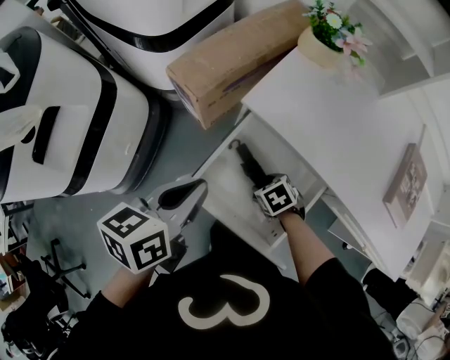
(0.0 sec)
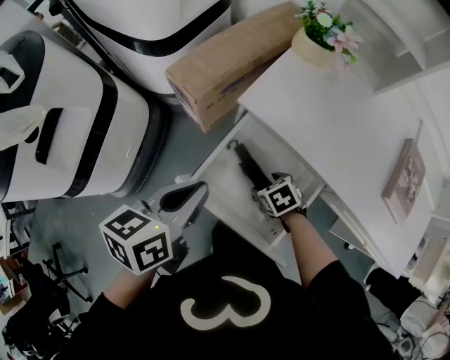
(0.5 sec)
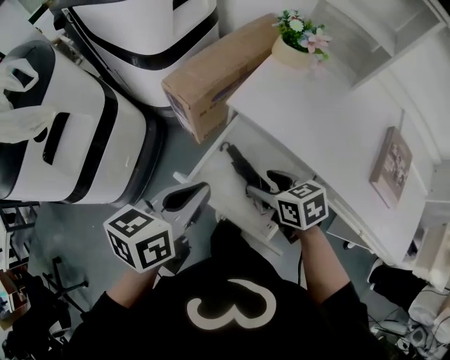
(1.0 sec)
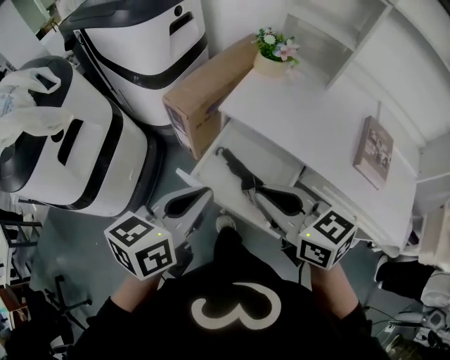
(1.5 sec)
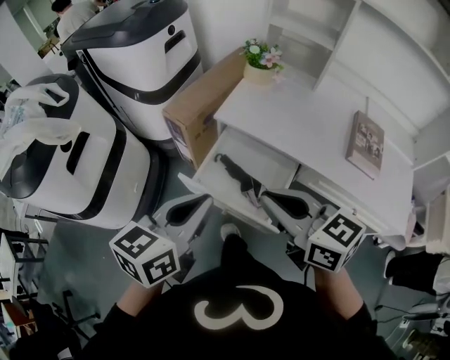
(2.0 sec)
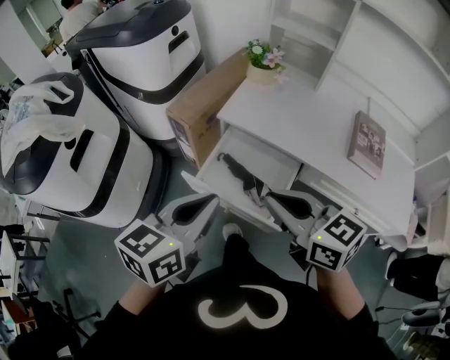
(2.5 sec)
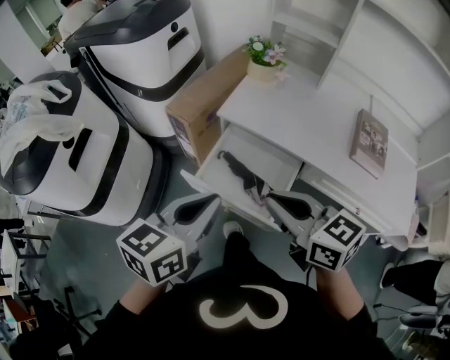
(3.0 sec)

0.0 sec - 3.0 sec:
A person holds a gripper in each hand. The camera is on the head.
0.0 sec - 1.5 sec: The right gripper moves upward, some 40 cm, angles its fingers upward, by about 50 degrees, and closes its fingers; the left gripper heads upward, covering approximately 15 cm.
1.5 sec - 3.0 sec: The right gripper shifts by about 5 cm, while the left gripper shifts by approximately 5 cm.

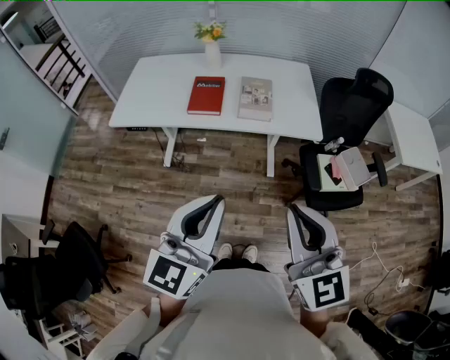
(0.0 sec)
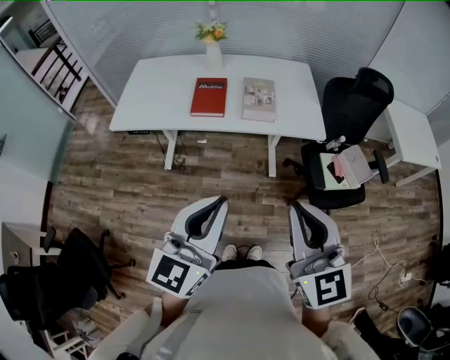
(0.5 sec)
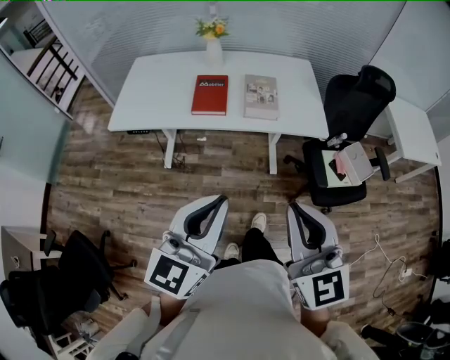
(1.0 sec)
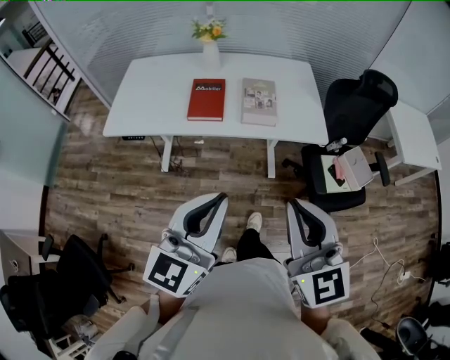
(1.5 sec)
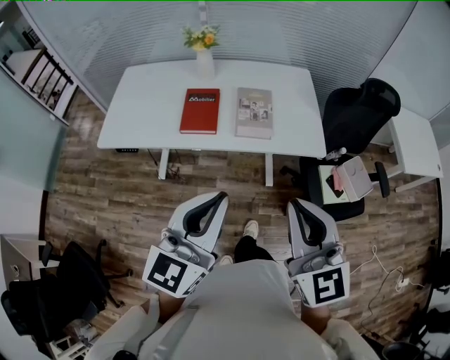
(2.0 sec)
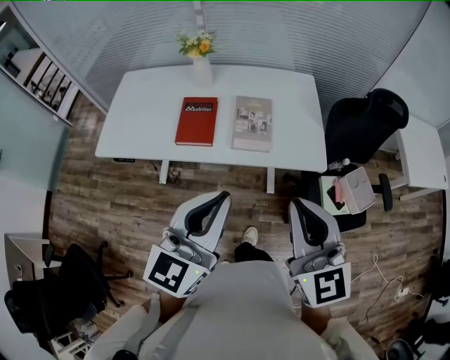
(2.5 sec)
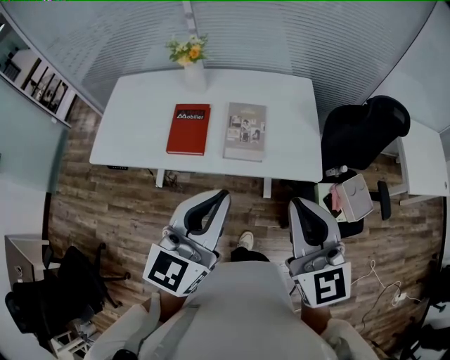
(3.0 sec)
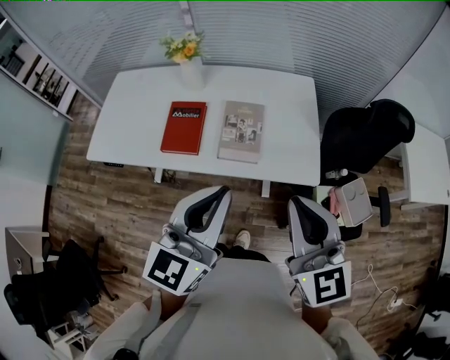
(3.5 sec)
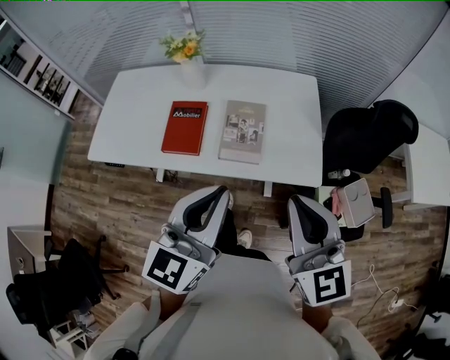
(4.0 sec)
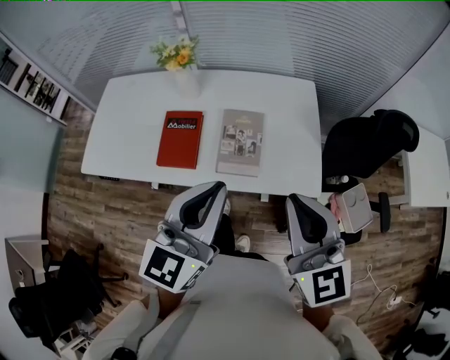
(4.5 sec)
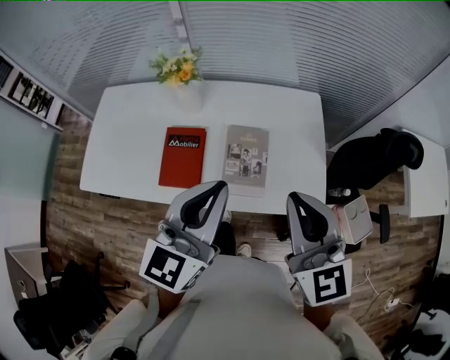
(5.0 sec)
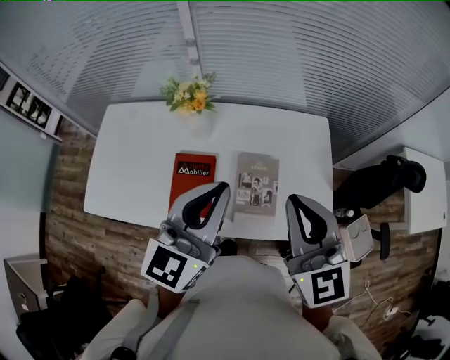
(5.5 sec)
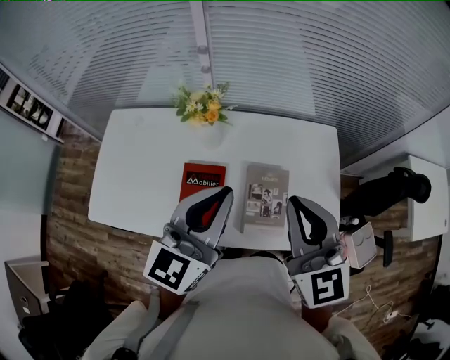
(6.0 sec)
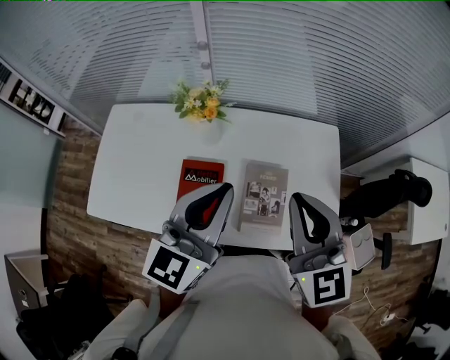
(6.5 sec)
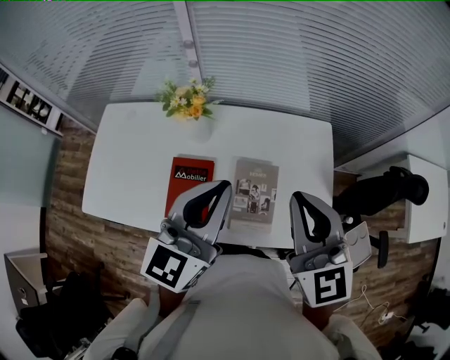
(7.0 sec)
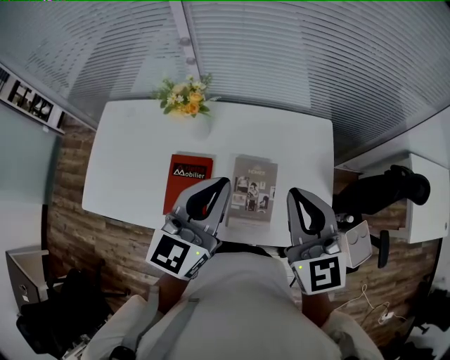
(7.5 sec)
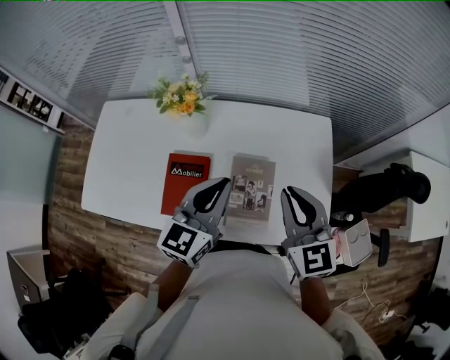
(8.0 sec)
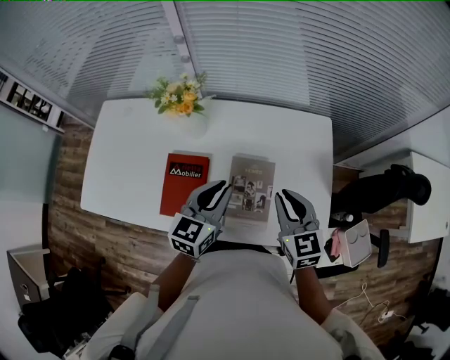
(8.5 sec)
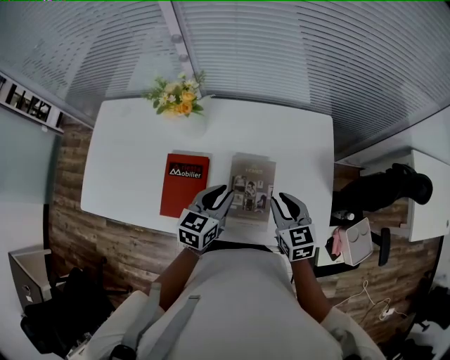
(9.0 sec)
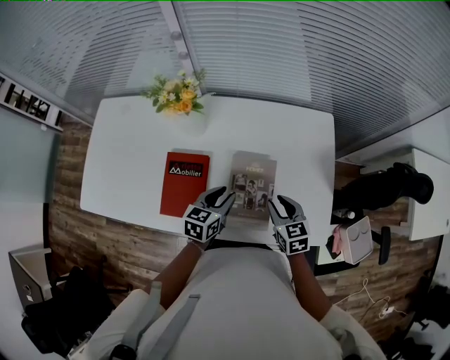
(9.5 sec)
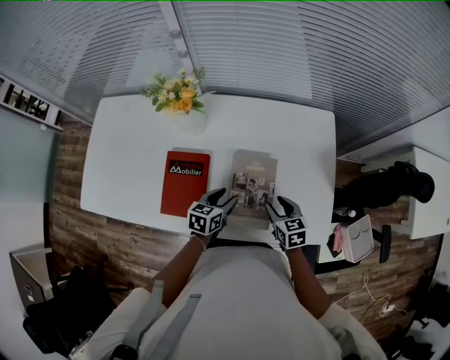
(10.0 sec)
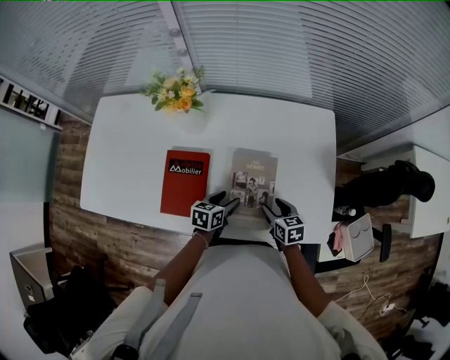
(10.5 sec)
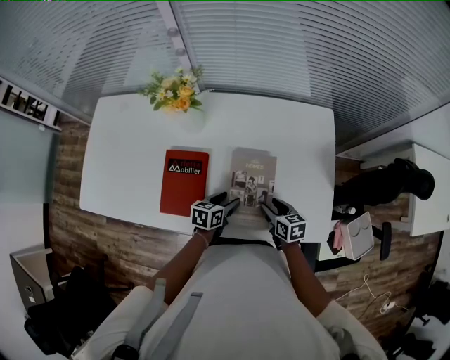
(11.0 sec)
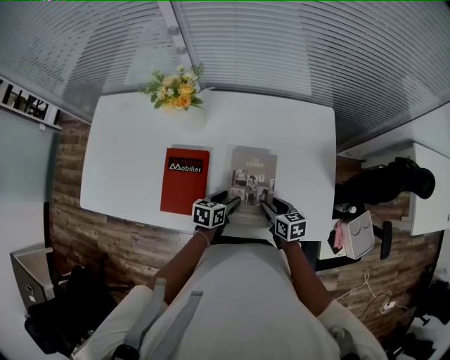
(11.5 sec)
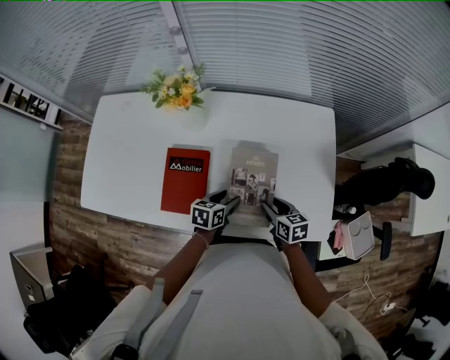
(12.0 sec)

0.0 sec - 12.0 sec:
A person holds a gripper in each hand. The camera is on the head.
0.0 sec - 2.0 sec: The grippers both shift forward by about 15 cm.
2.0 sec - 4.0 sec: The two grippers go roughly 20 cm forward and to the right.
4.0 sec - 6.0 sec: Both grippers move forward and to the left, roughly 30 cm.
6.0 sec - 8.0 sec: The two grippers go about 15 cm downward and to the right.
8.0 sec - 10.0 sec: Both grippers move downward, some 30 cm. The left gripper swivels roughly 40 degrees, and opens up. The right gripper turns by about 30 degrees, and opens its fingers.
10.0 sec - 12.0 sec: The grippers make only small movements.

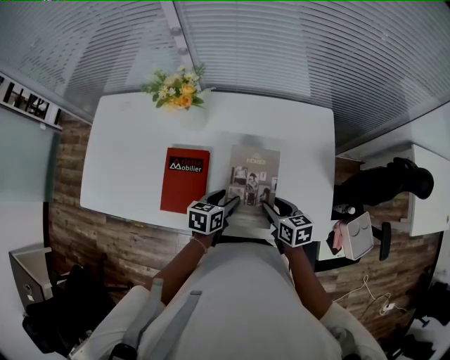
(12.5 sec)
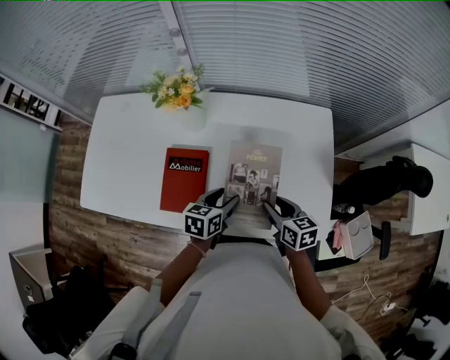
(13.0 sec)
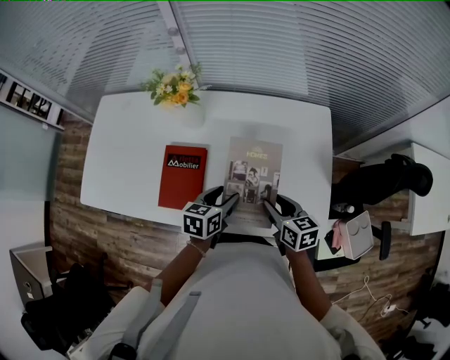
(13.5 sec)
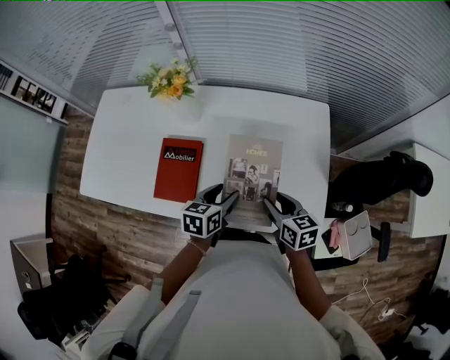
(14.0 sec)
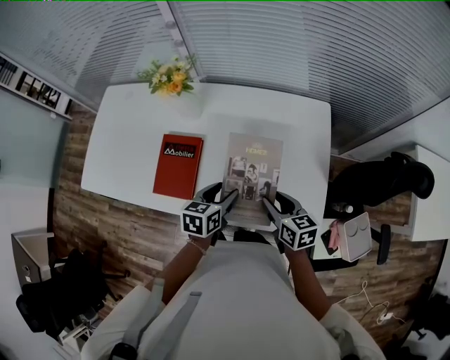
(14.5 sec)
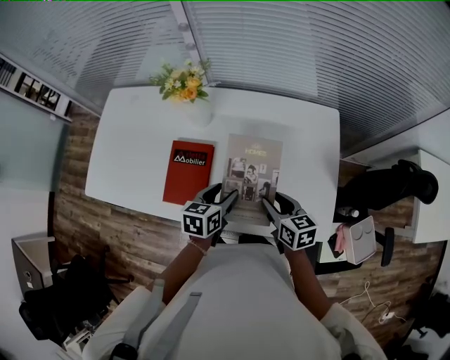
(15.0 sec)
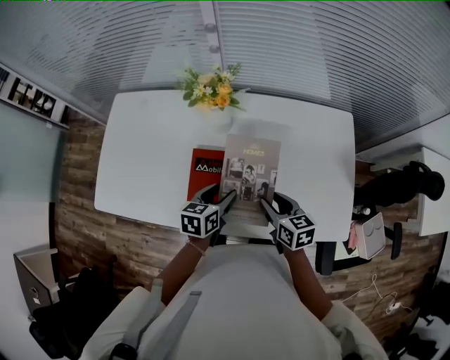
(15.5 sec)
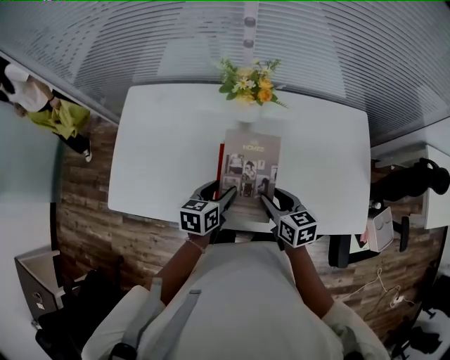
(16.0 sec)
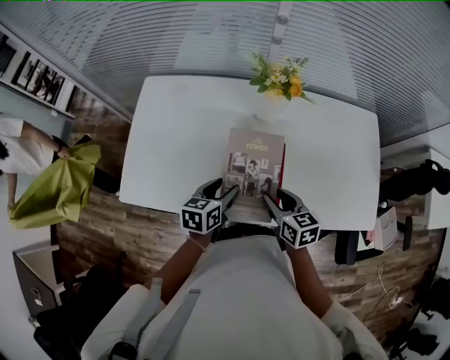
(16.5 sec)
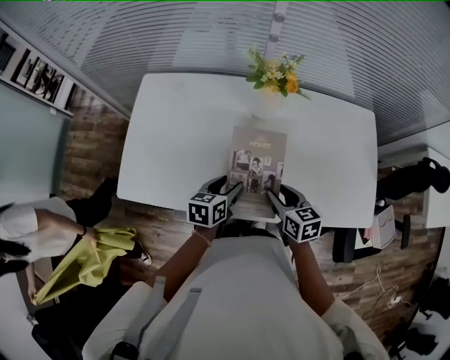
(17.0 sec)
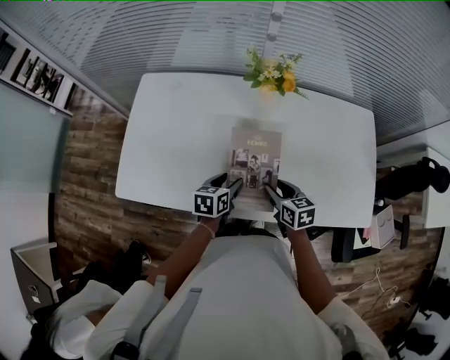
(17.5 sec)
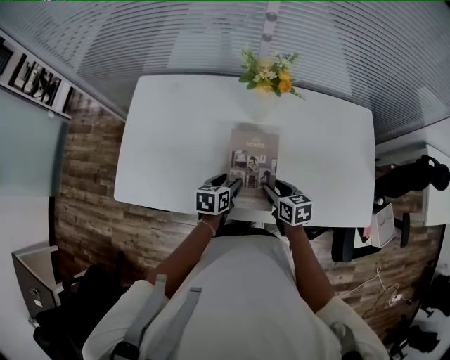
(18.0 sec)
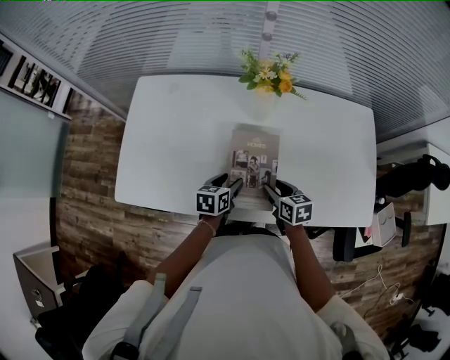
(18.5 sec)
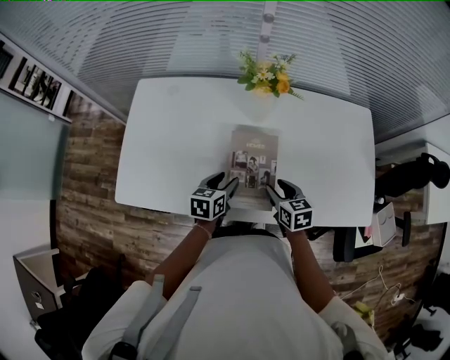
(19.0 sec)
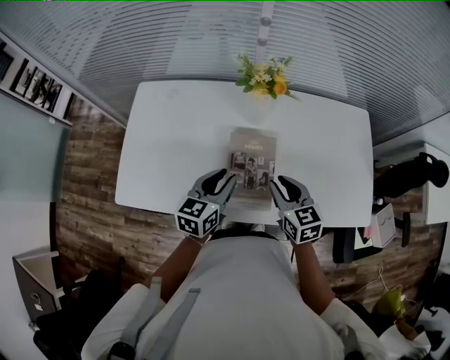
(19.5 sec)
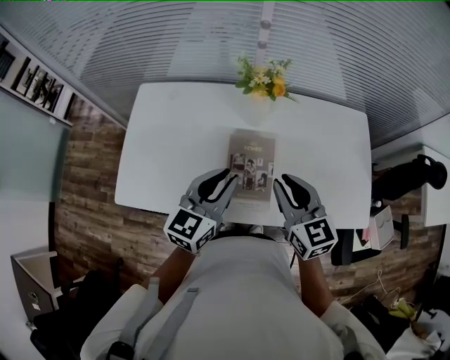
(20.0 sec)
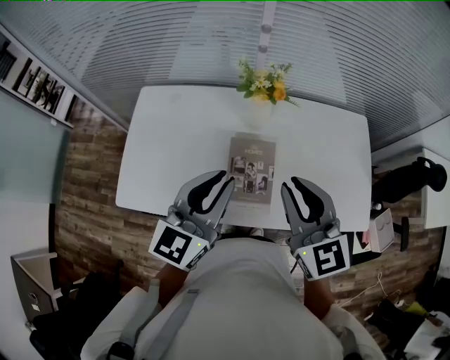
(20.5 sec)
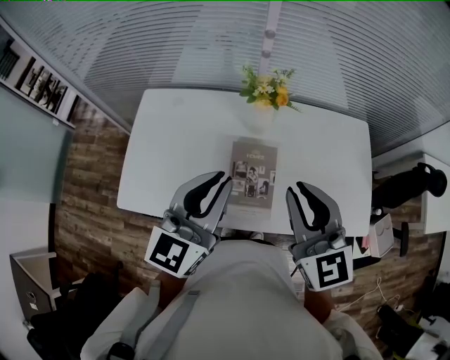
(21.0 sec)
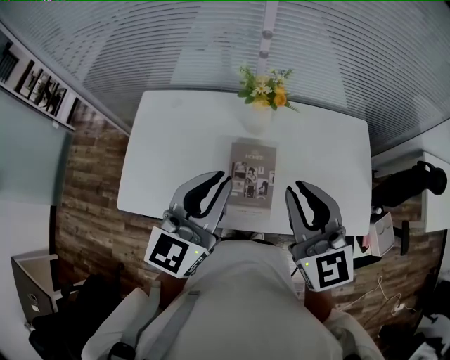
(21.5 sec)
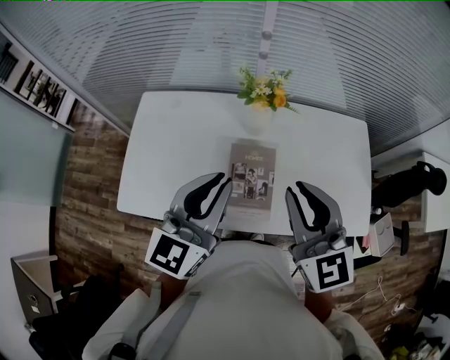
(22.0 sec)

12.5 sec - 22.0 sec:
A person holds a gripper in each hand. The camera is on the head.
12.5 sec - 14.5 sec: The two grippers go some 5 cm upward.
14.5 sec - 16.5 sec: Both grippers travel together to the left, about 35 cm.
16.5 sec - 18.0 sec: Both grippers travel together downward, about 10 cm.
18.0 sec - 20.0 sec: Both grippers travel together upward, approximately 25 cm. The right gripper turns by roughly 30 degrees, and closes. Meanwhile the left gripper points its fingers about 30 degrees further upward, and closes.
20.0 sec - 22.0 sec: Both grippers move upward, approximately 15 cm.

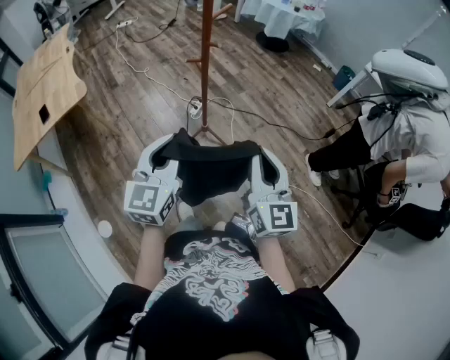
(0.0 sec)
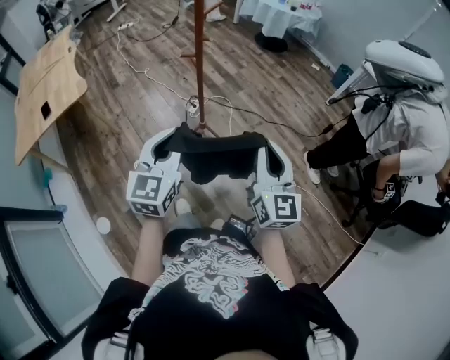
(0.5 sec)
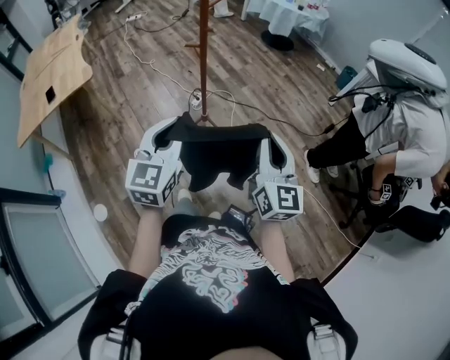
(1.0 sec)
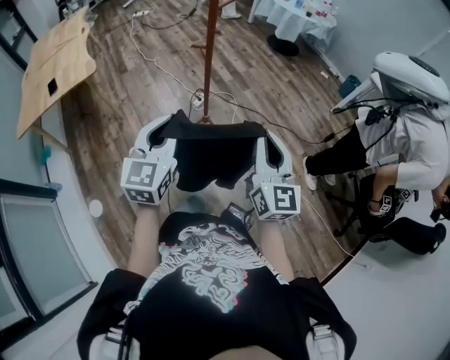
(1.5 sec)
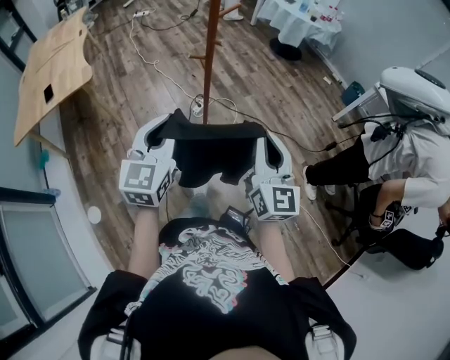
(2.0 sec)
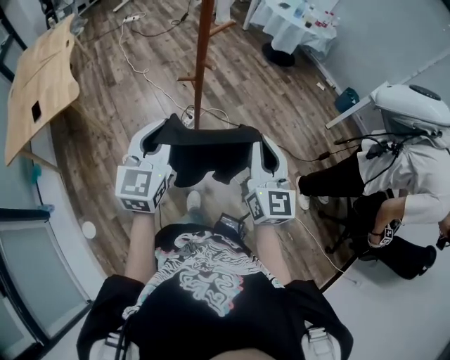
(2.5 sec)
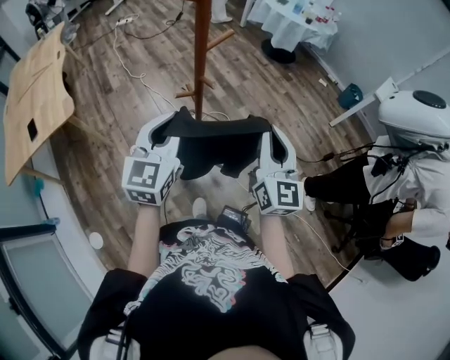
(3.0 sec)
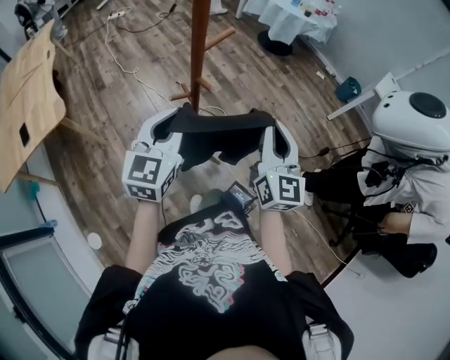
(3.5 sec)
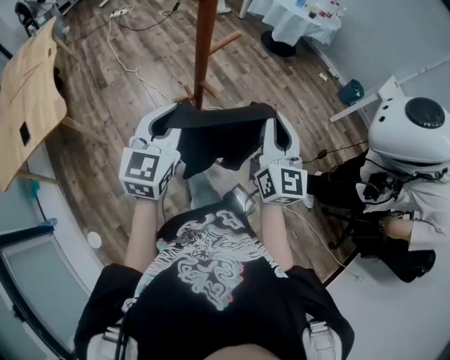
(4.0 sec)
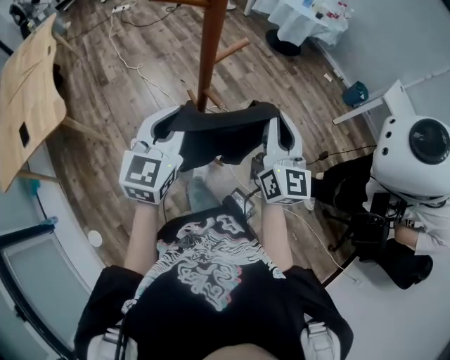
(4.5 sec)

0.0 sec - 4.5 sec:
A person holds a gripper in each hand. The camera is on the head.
0.0 sec - 2.0 sec: The right gripper heads forward, covering some 5 cm.
2.0 sec - 4.5 sec: The grippers both shift forward by roughly 35 cm.
